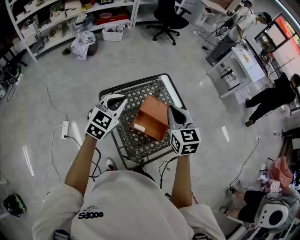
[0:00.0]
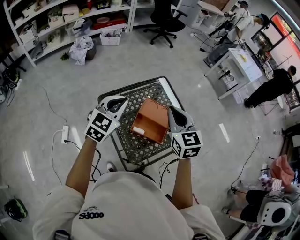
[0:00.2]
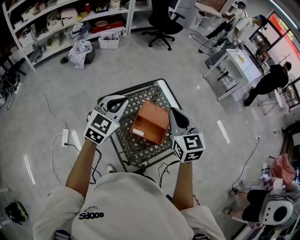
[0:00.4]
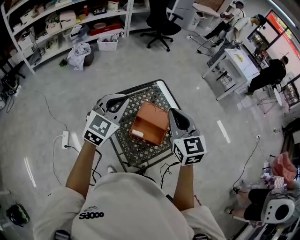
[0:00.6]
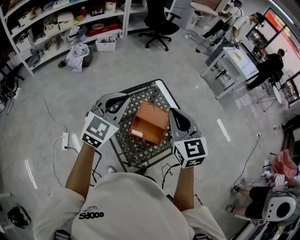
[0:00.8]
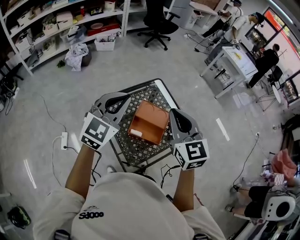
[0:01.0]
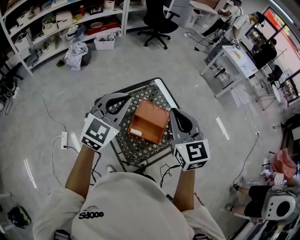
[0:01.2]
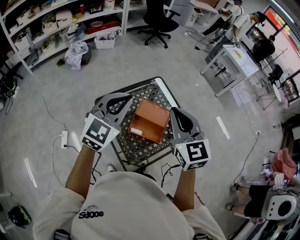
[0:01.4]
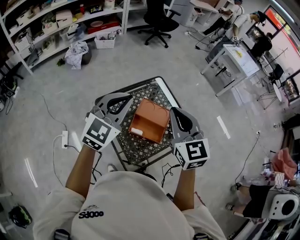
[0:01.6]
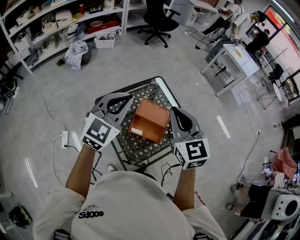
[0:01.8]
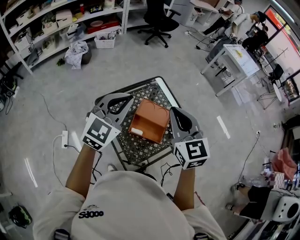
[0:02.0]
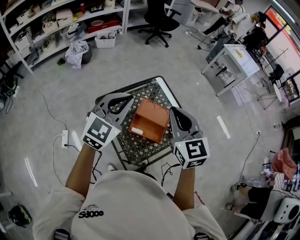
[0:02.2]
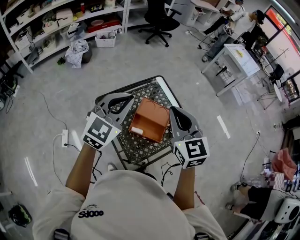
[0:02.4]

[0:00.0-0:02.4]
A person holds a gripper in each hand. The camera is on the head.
0:00.0 to 0:01.2: Both grippers travel together upward, about 10 cm.
0:01.2 to 0:02.4: The grippers stay close to where they were, moving slightly.

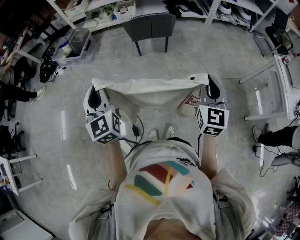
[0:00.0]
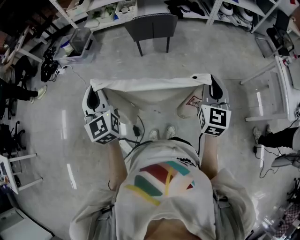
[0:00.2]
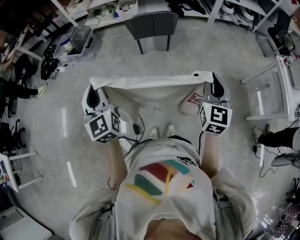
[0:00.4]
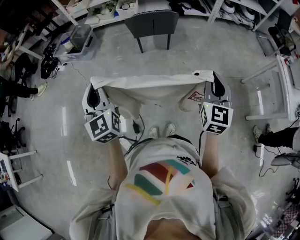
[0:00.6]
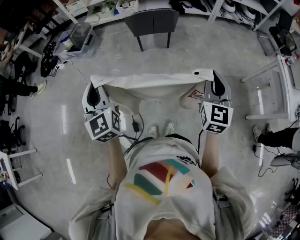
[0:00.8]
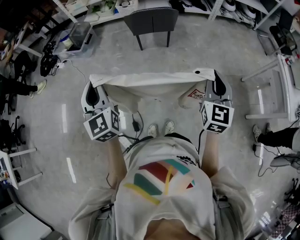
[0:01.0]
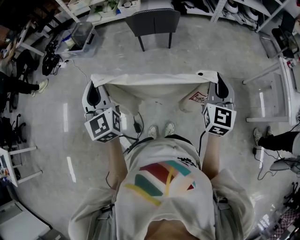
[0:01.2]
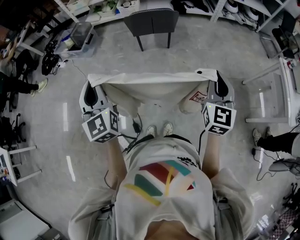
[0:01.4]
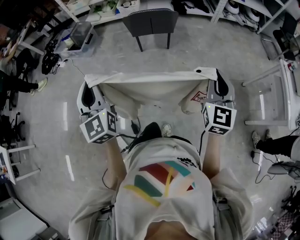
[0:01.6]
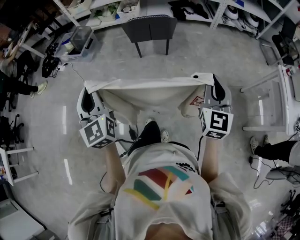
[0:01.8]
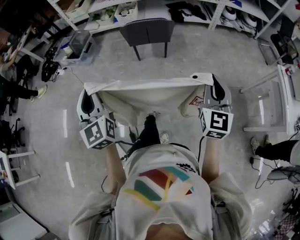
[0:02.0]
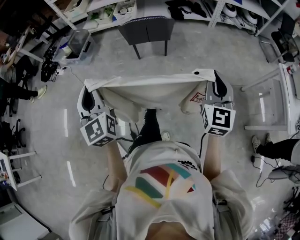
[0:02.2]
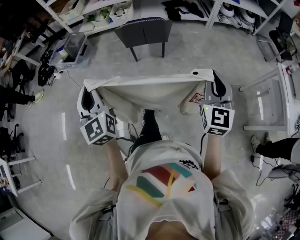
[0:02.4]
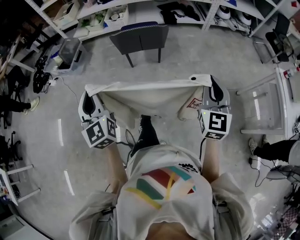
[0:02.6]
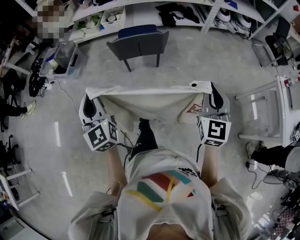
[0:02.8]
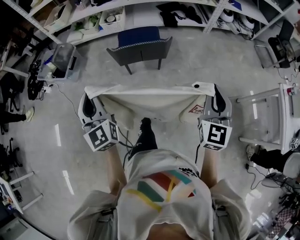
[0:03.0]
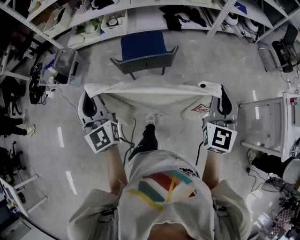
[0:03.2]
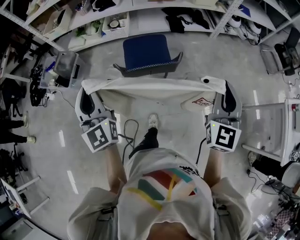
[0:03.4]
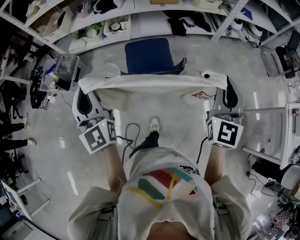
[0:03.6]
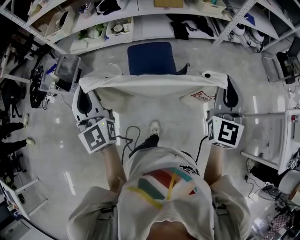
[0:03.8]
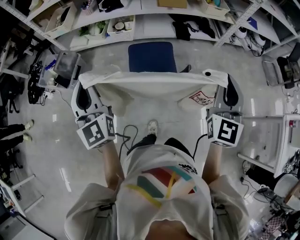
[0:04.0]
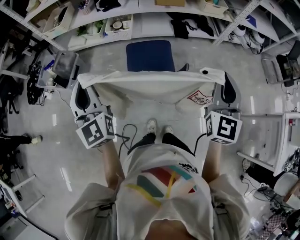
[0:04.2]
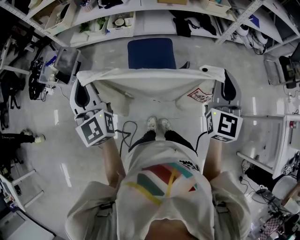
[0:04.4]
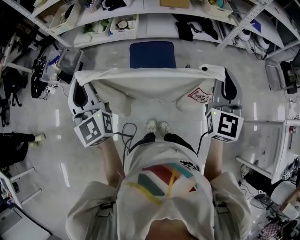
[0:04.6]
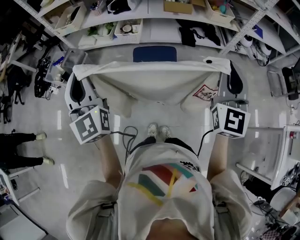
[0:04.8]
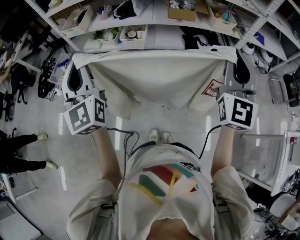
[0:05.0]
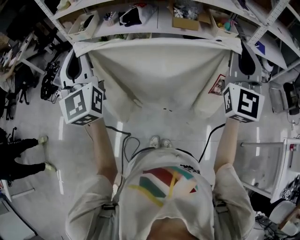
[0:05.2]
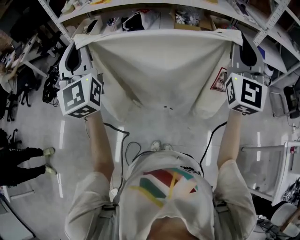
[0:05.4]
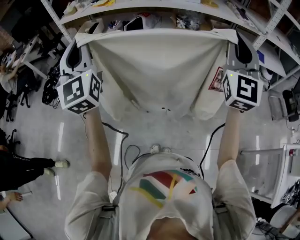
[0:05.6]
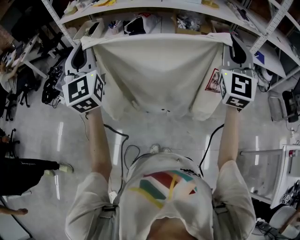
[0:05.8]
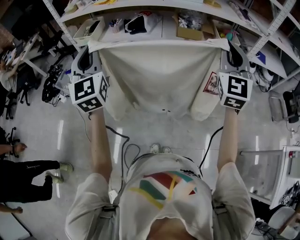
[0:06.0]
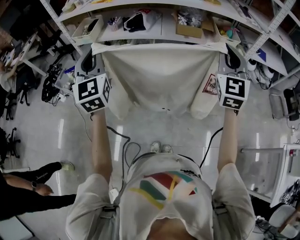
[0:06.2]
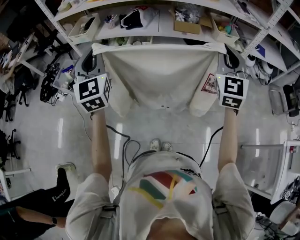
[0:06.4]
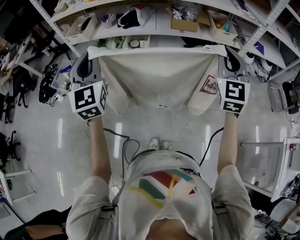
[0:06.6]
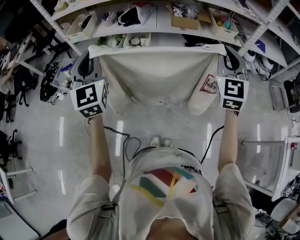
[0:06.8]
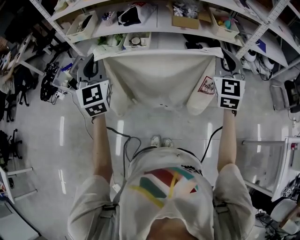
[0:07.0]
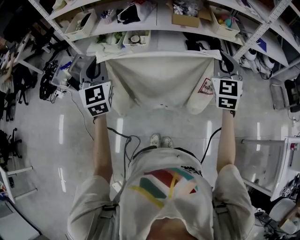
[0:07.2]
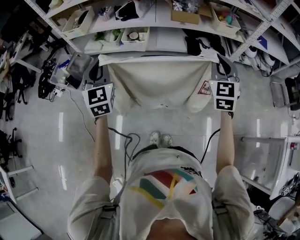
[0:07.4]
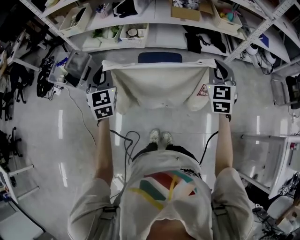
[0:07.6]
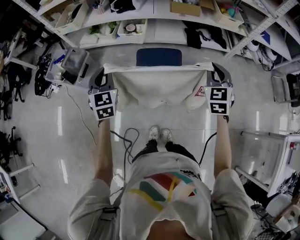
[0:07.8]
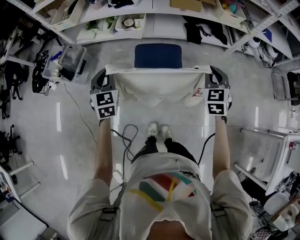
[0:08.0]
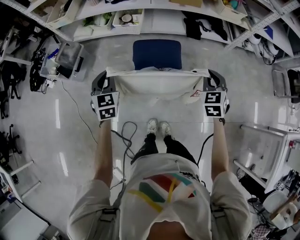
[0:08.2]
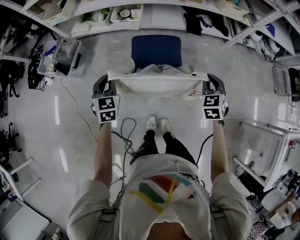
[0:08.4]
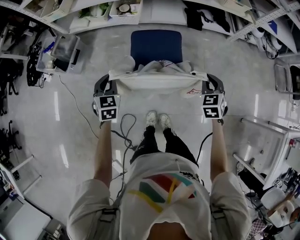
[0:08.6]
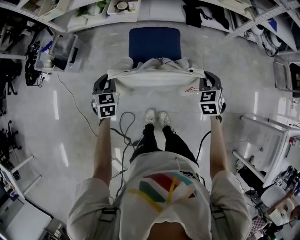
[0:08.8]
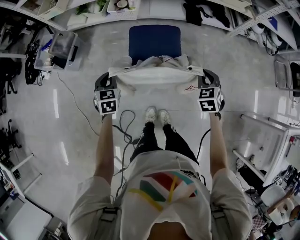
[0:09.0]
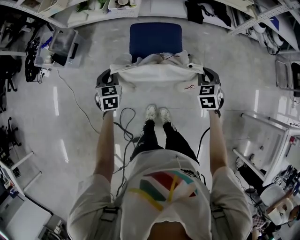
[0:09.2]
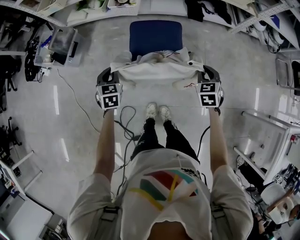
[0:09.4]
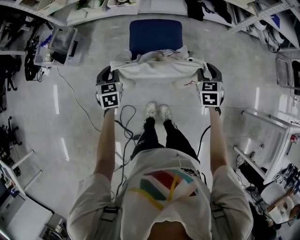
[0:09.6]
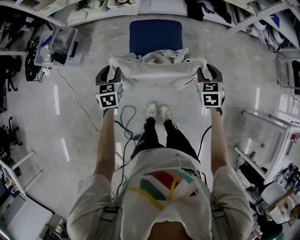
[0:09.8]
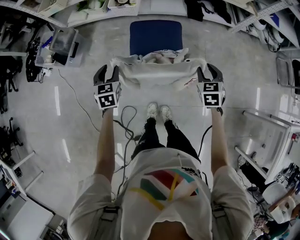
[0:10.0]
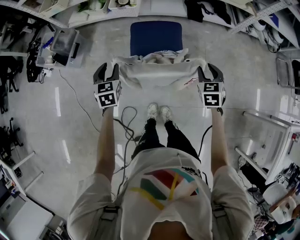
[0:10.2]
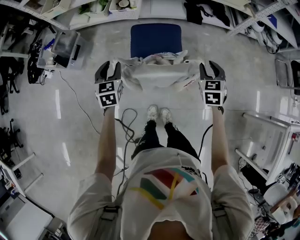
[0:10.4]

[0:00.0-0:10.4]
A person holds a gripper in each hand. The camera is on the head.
0:00.0 to 0:01.4: The right gripper is displaced to the right by about 5 cm.
0:01.4 to 0:03.0: Both grippers move forward, some 25 cm.
0:03.0 to 0:04.4: The two grippers go roughly 25 cm forward.
0:04.4 to 0:06.0: The grippers both shift upward and forward by about 15 cm.
0:06.0 to 0:07.4: The two grippers go approximately 15 cm downward. The right gripper swivels roughly 20 degrees.
0:07.4 to 0:09.0: The two grippers go roughly 30 cm downward. The left gripper tips its fingers downward by some 30 degrees, while the right gripper tips its fingers downward by about 30 degrees.
0:09.0 to 0:10.4: The left gripper opens up. Meanwhile the right gripper opens its fingers.

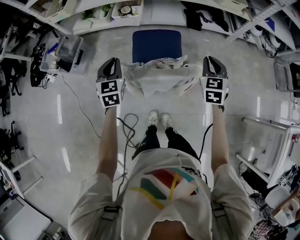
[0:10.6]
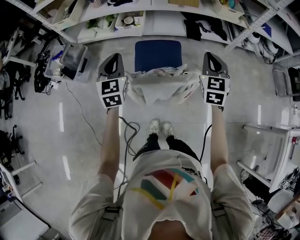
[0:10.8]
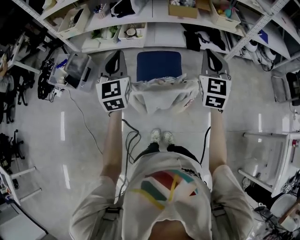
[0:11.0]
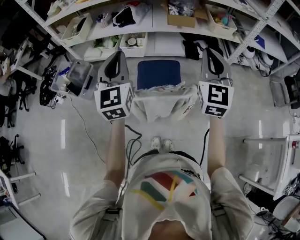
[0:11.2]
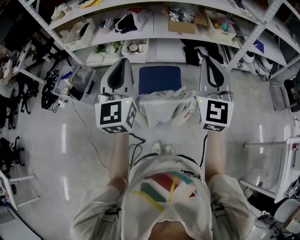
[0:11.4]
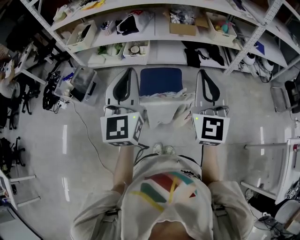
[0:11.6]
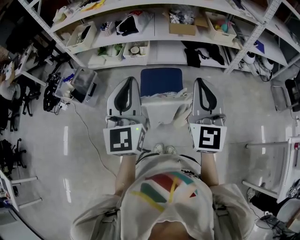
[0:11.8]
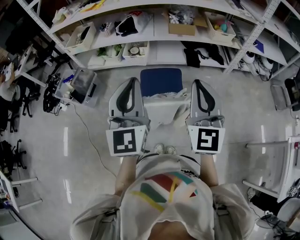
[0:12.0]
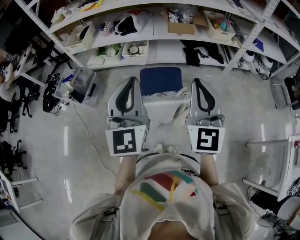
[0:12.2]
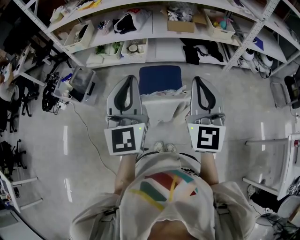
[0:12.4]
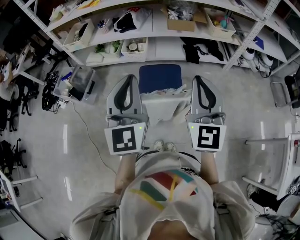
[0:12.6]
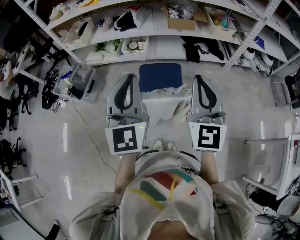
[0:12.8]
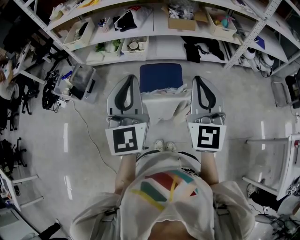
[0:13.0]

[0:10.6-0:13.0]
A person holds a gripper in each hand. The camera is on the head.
0:10.6 to 0:11.8: The right gripper travels upward and backward by approximately 30 cm, and angles its fingers upward, by about 40 degrees. The left gripper travels upward by about 30 cm, and angles its fingers upward, by some 30 degrees.
0:11.8 to 0:13.0: The grippers make only small movements.

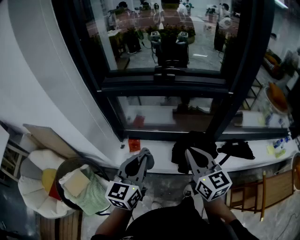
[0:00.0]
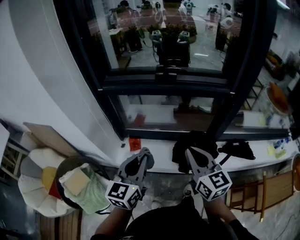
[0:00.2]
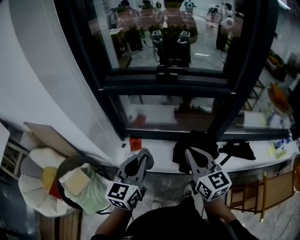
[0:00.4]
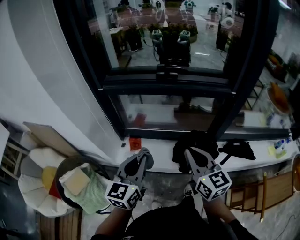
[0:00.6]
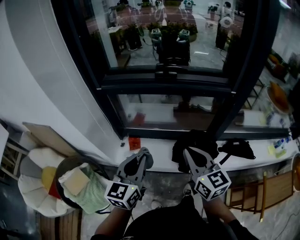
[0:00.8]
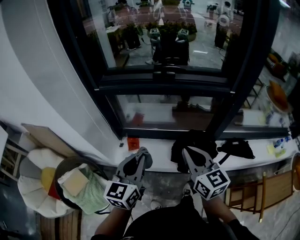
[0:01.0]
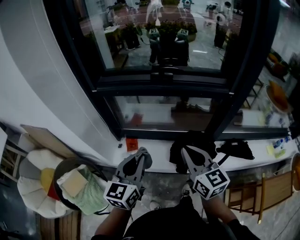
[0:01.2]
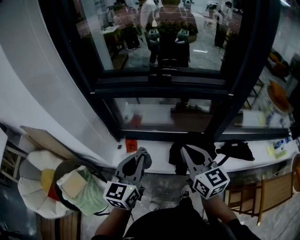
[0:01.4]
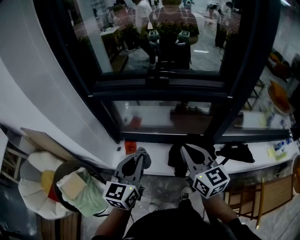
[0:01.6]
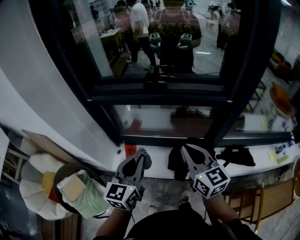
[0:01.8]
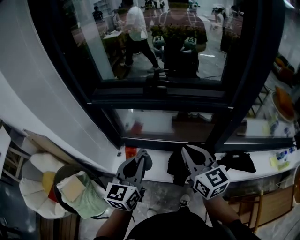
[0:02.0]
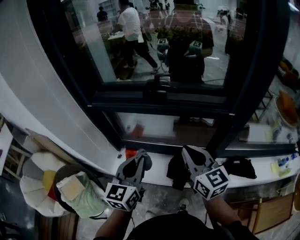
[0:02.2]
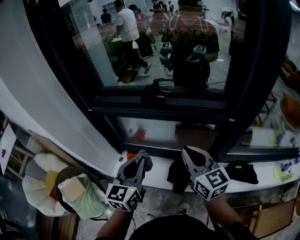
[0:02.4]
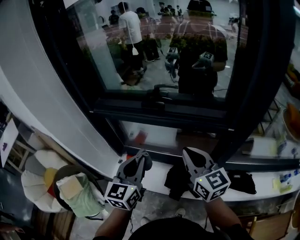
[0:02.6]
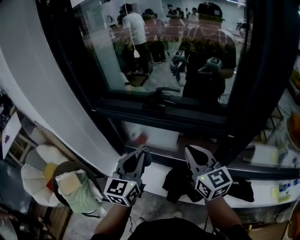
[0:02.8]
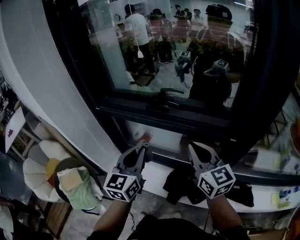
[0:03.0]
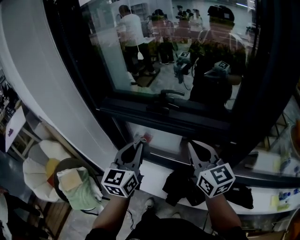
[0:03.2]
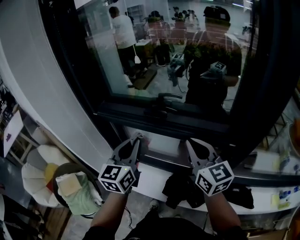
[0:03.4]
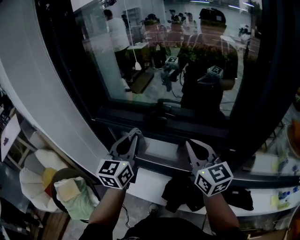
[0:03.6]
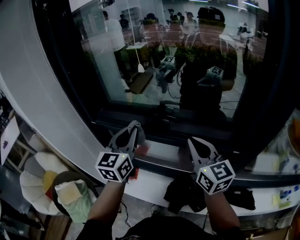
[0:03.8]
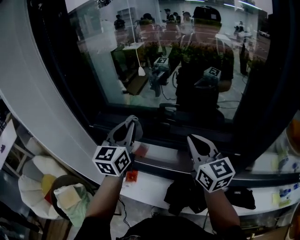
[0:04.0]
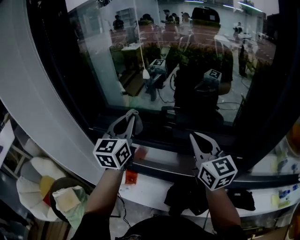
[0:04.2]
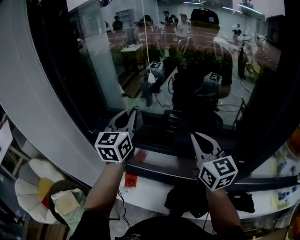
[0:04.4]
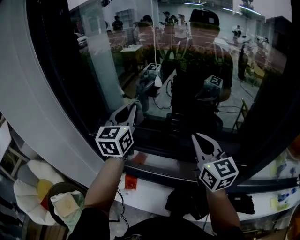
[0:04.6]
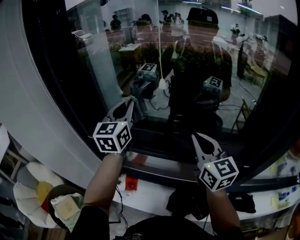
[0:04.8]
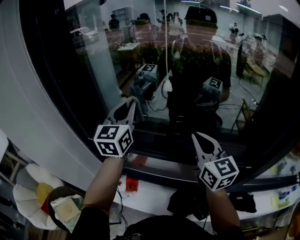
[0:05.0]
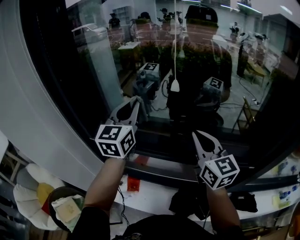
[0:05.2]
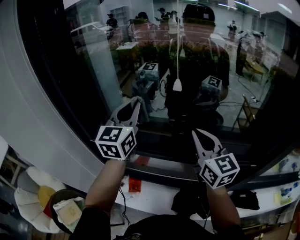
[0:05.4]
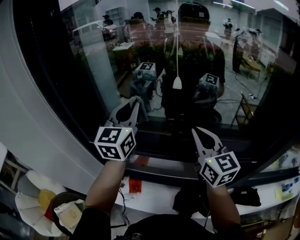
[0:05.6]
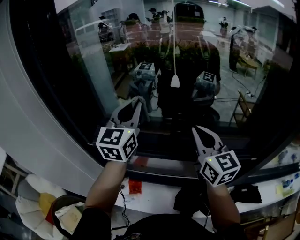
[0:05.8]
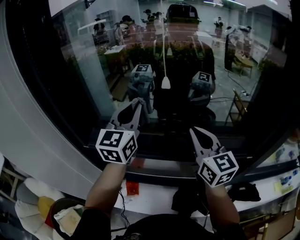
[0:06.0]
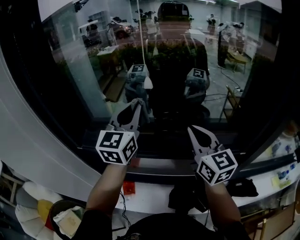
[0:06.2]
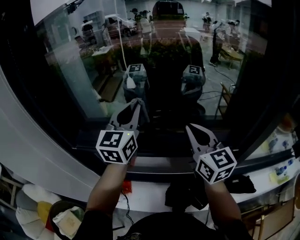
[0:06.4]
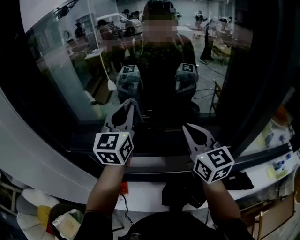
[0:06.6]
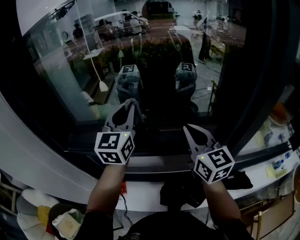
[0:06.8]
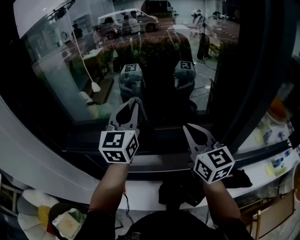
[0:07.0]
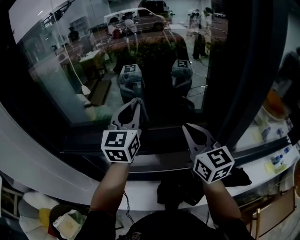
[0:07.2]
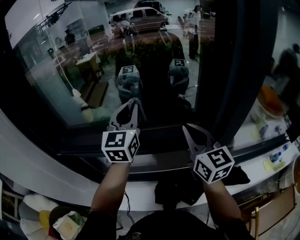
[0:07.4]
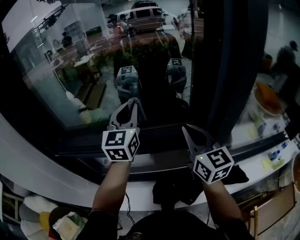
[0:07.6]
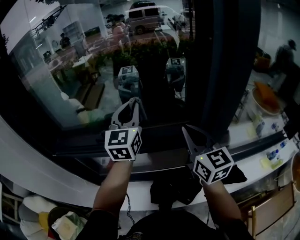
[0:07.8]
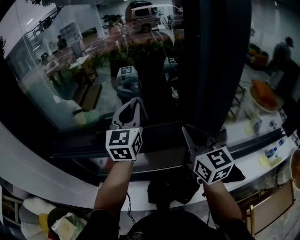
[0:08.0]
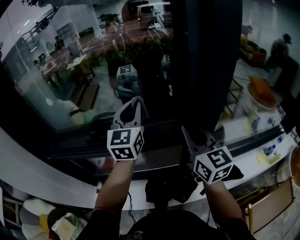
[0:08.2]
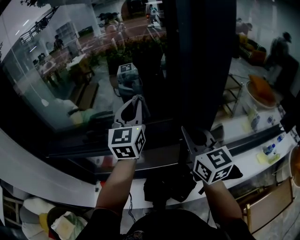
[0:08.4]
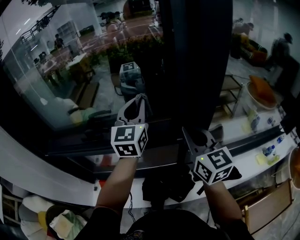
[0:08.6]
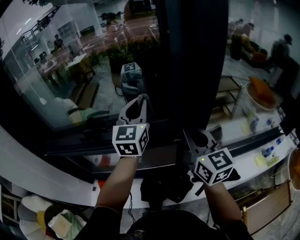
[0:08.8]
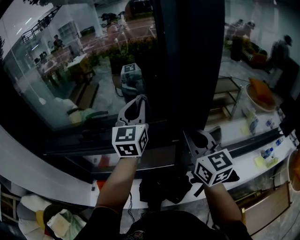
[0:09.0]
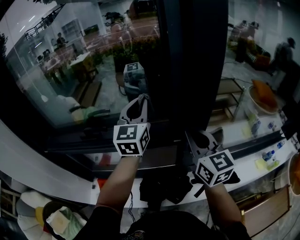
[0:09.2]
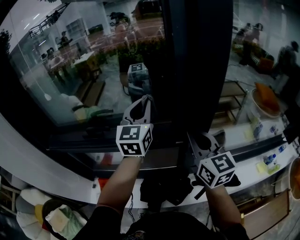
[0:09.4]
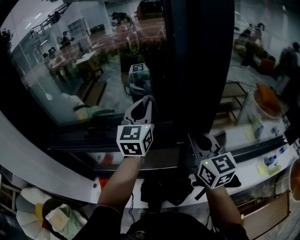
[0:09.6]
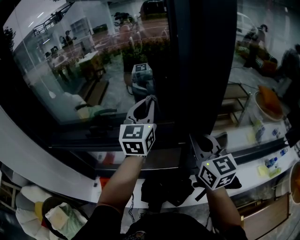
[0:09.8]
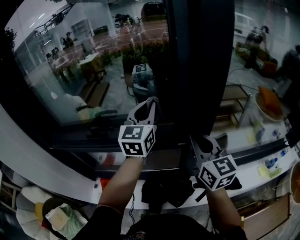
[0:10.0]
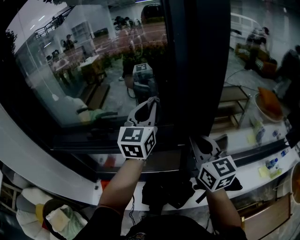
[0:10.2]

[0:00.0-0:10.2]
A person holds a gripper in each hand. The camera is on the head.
0:00.0 to 0:01.4: The grippers move only a little.
0:01.4 to 0:03.0: The grippers both shift forward, to the right and upward by some 20 cm.
0:03.0 to 0:04.4: The left gripper heads forward and upward, covering some 25 cm. Meanwhile the right gripper goes approximately 15 cm forward.
0:04.4 to 0:05.8: Both grippers travel together forward, about 5 cm.
0:05.8 to 0:07.2: The grippers both shift to the right by about 20 cm.
0:07.2 to 0:08.8: Both grippers travel together to the right, some 20 cm.
0:08.8 to 0:10.2: There are only small adjustments of the grippers.
